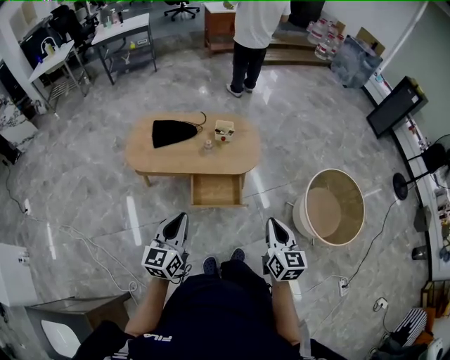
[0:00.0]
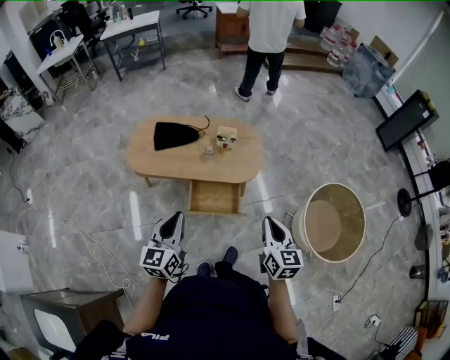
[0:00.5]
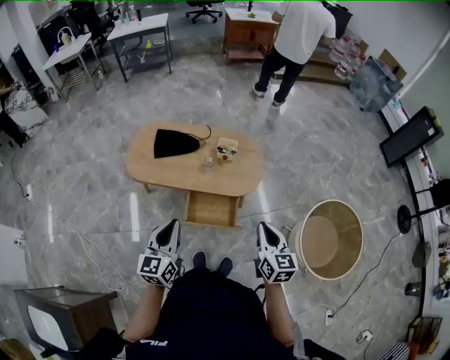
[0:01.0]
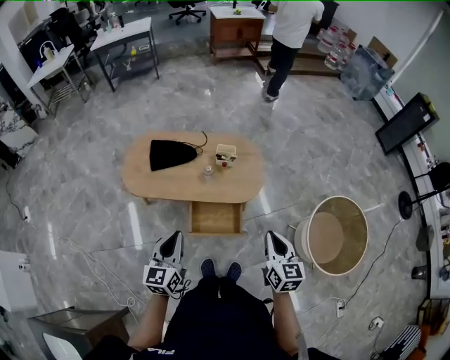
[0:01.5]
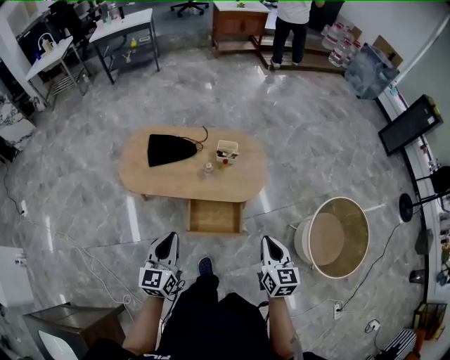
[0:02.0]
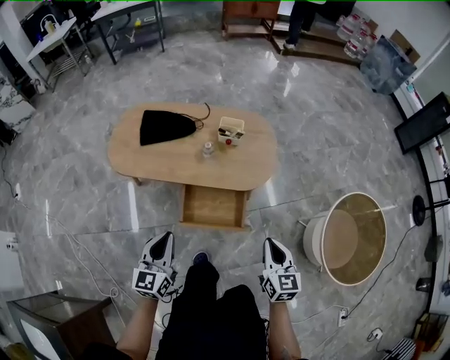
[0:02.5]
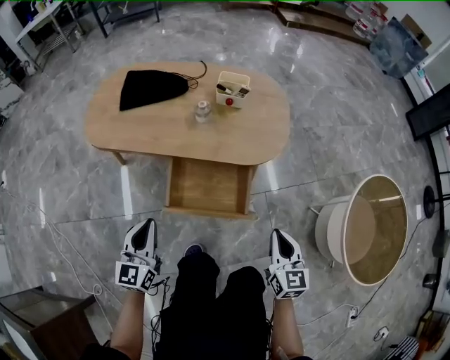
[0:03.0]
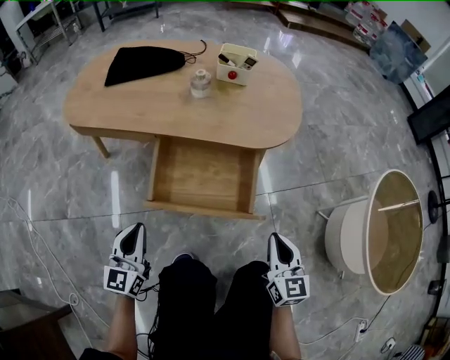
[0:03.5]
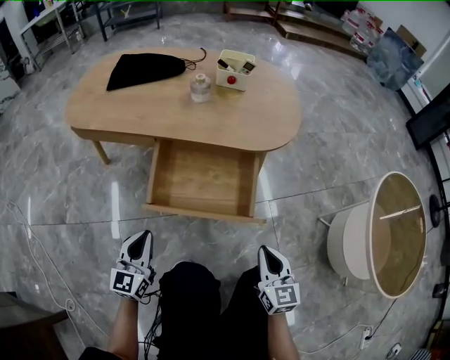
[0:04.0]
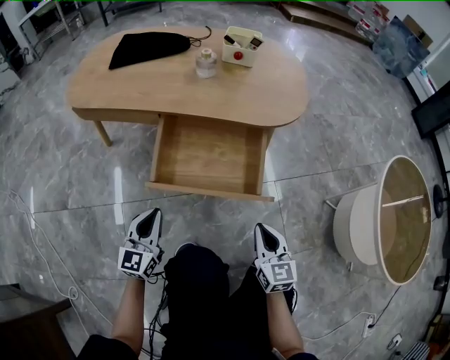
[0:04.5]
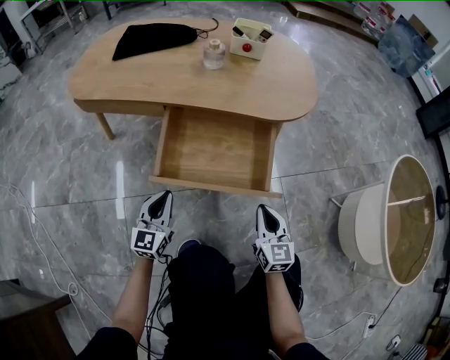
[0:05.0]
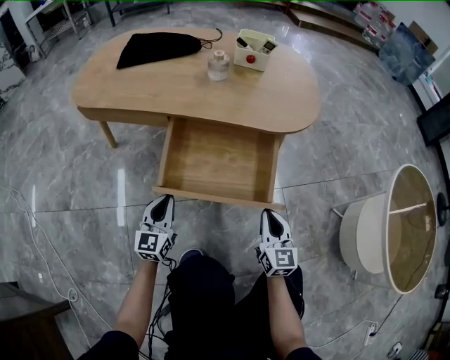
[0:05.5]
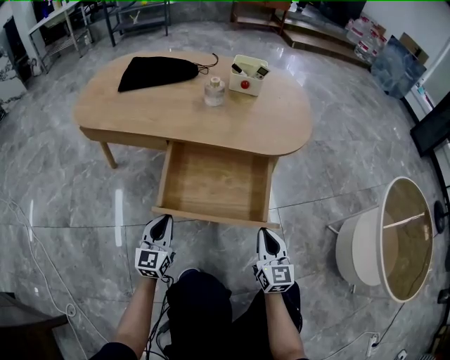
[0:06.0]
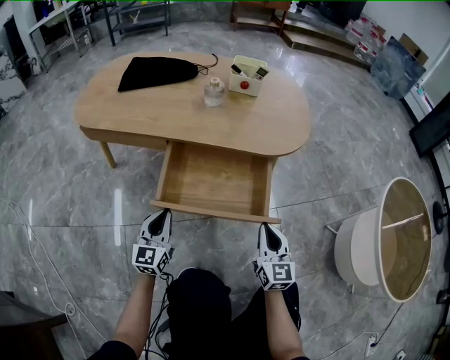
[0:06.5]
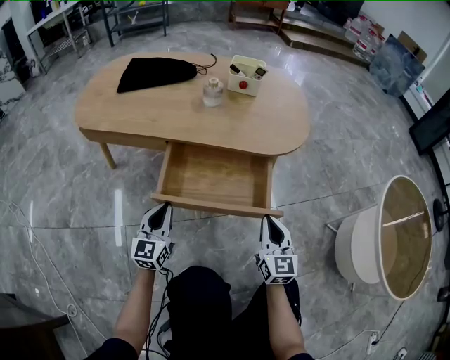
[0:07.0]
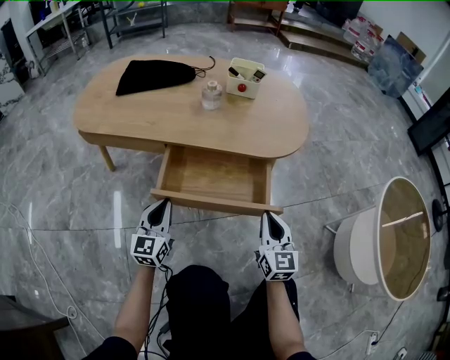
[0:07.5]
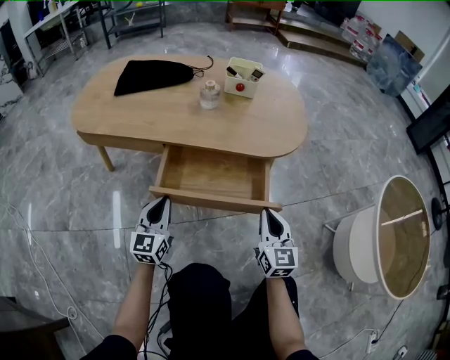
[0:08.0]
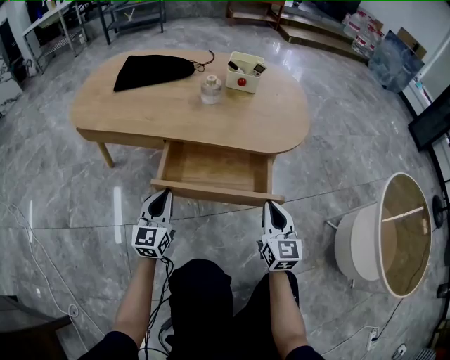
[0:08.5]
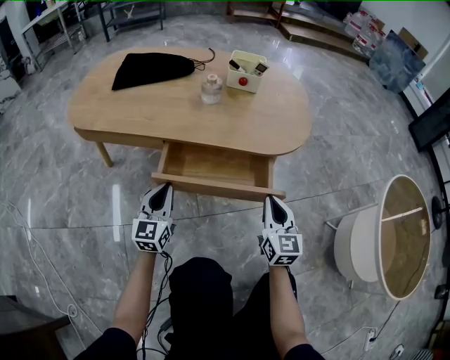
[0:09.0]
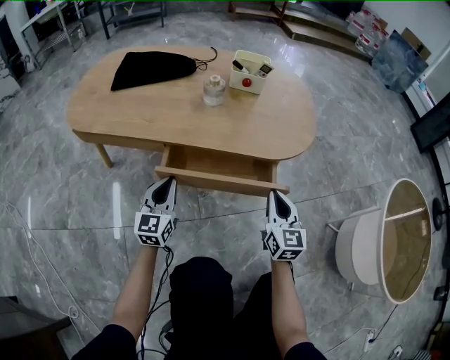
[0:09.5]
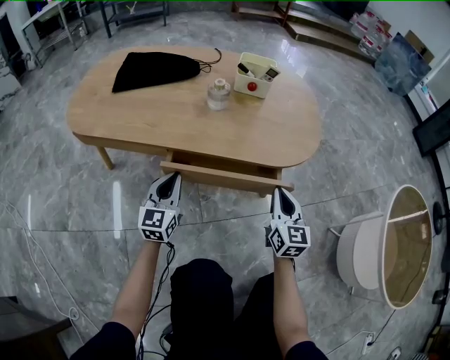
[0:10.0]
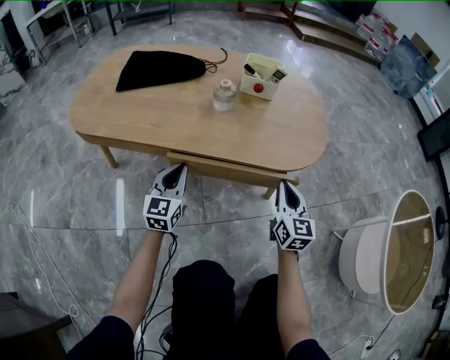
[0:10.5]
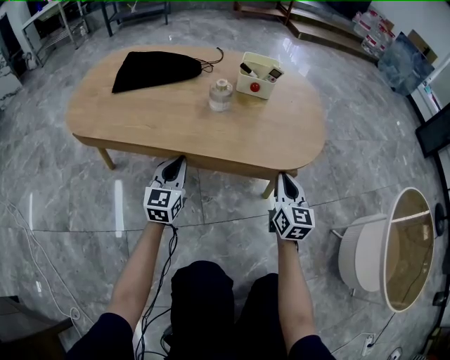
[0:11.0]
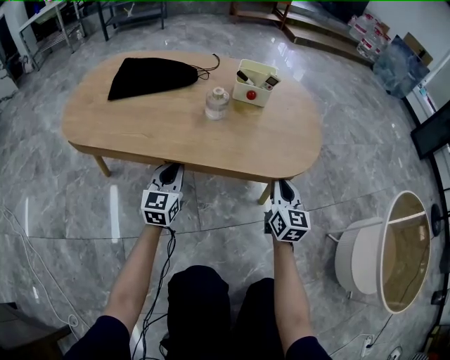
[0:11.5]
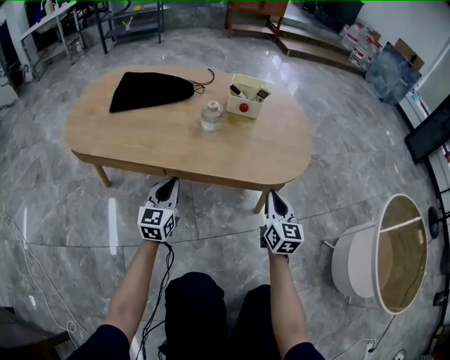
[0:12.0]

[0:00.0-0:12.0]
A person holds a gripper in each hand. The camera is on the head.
0:00.0 to 0:02.0: The grippers both shift forward and downward by approximately 20 cm.
0:02.0 to 0:04.0: Both grippers move downward, some 60 cm.
0:04.0 to 0:06.0: The left gripper travels downward and forward by approximately 10 cm, while the right gripper travels forward and downward by approximately 10 cm.
0:06.0 to 0:08.0: The two grippers go some 10 cm upward and forward.
0:08.0 to 0:10.0: The two grippers go roughly 10 cm forward.
0:10.0 to 0:12.0: The right gripper goes roughly 5 cm forward.

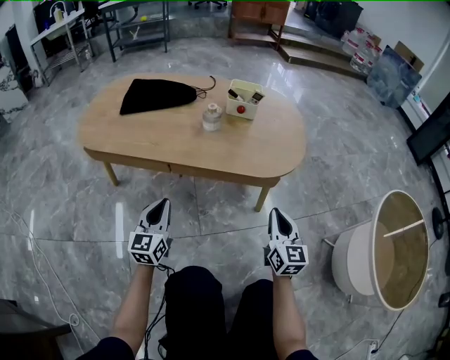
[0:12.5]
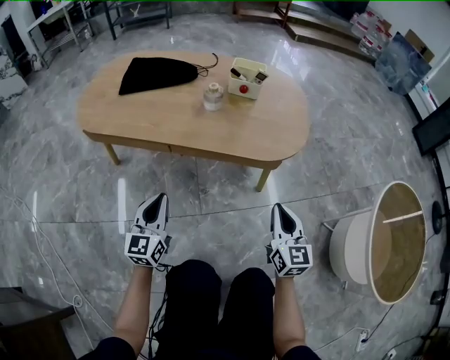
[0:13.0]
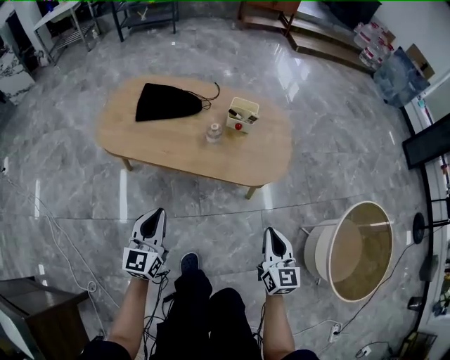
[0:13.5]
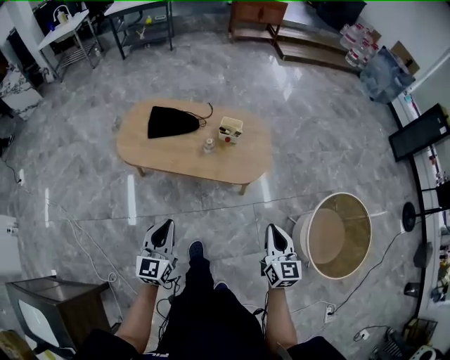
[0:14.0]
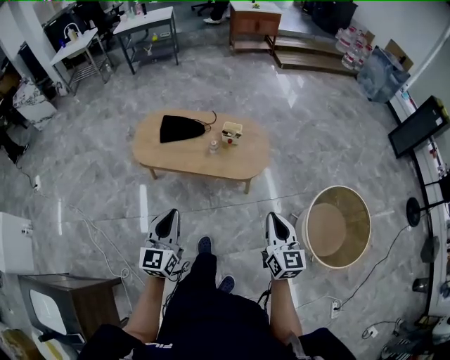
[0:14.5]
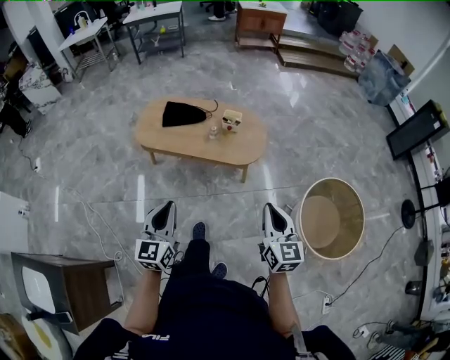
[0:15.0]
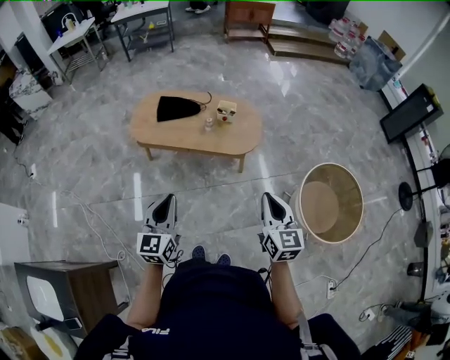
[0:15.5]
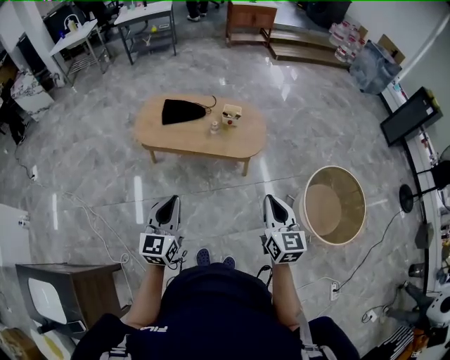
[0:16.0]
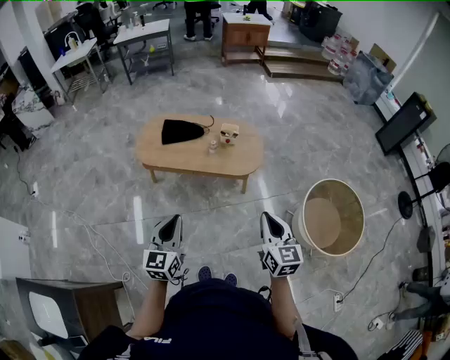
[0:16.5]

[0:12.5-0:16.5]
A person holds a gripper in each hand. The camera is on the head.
0:12.5 to 0:14.5: Both grippers move upward, roughly 60 cm.
0:14.5 to 0:16.5: The right gripper moves backward and to the left, some 10 cm; the left gripper shifts approximately 10 cm backward.

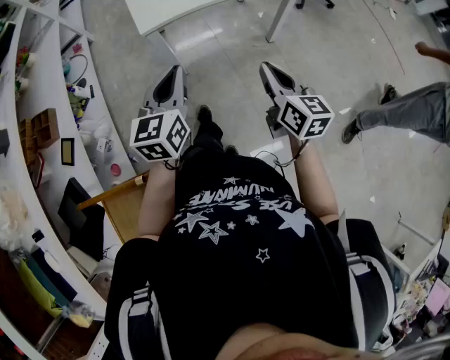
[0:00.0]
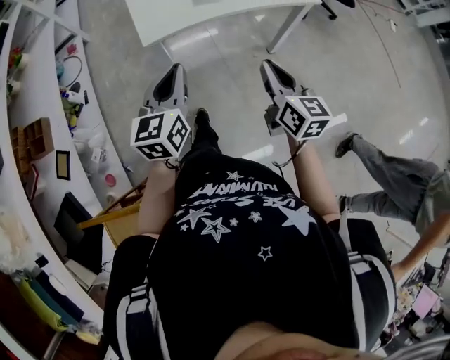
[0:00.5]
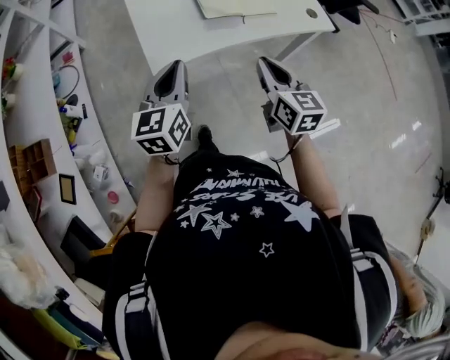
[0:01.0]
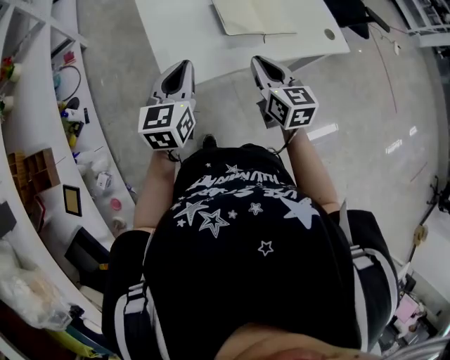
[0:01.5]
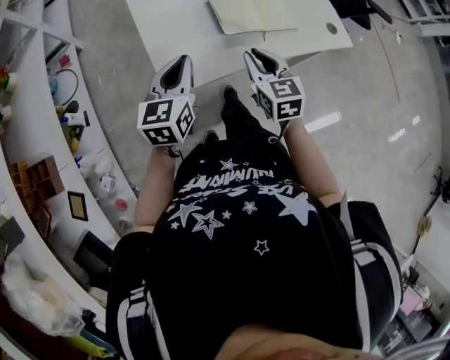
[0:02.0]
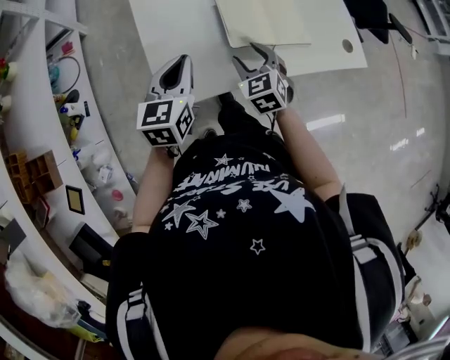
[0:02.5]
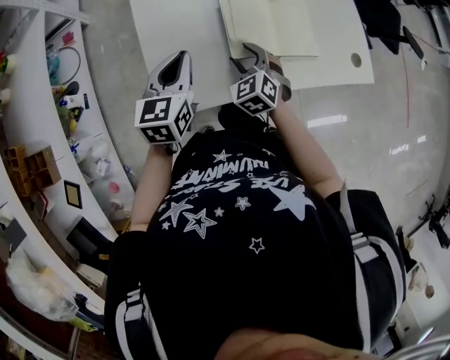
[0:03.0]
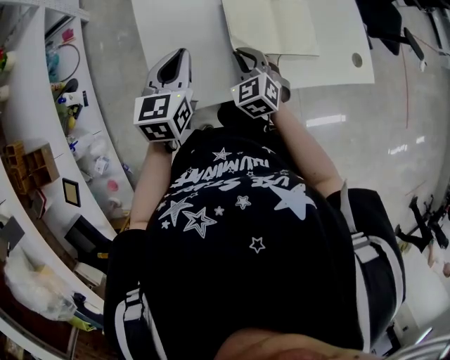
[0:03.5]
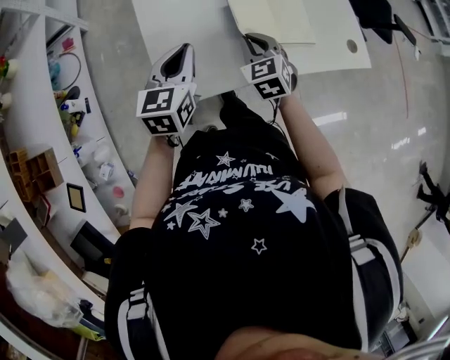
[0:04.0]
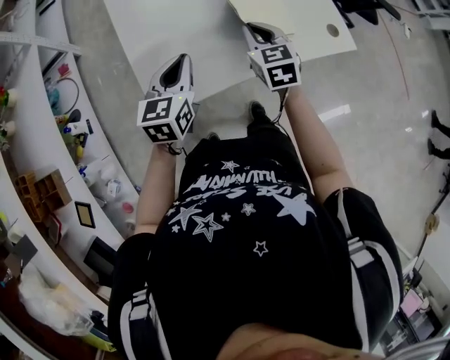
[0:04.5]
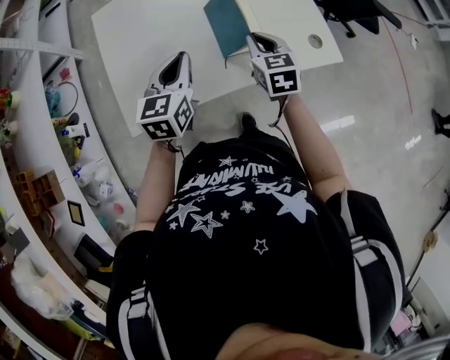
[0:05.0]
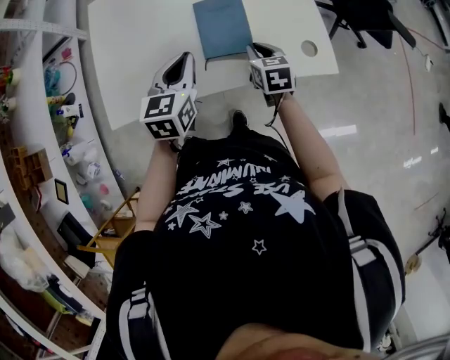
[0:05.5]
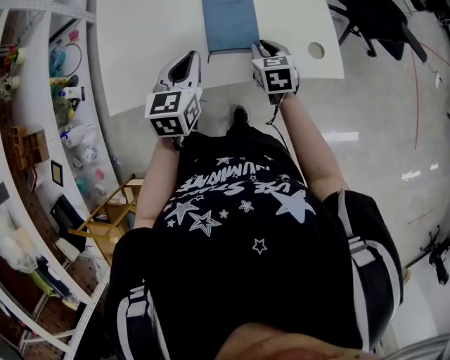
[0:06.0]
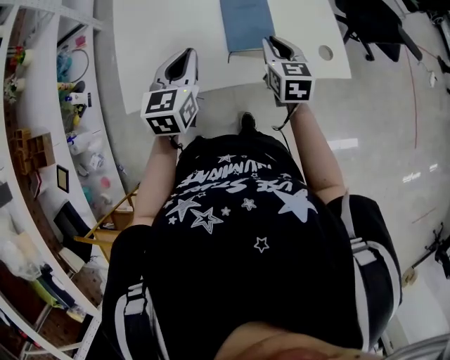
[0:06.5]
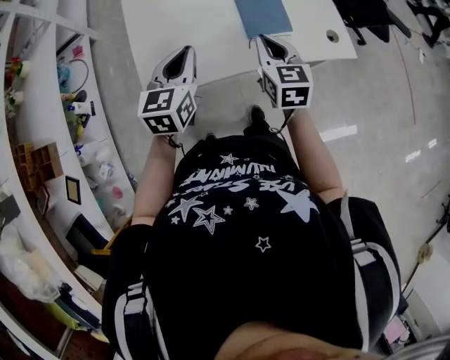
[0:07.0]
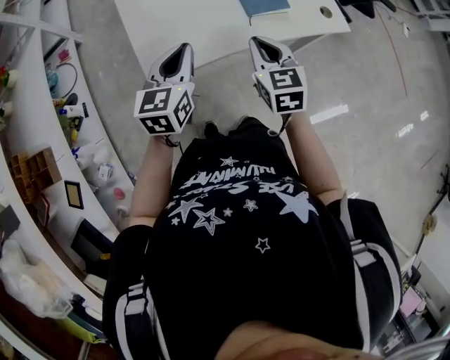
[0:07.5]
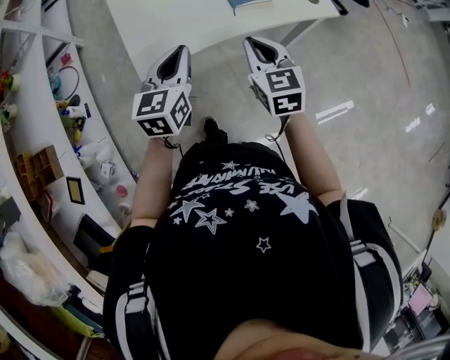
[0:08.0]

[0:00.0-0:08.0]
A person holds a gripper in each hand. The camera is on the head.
0:00.0 to 0:02.0: Both grippers travel together forward, approximately 40 cm. The right gripper turns by approximately 30 degrees.
0:02.0 to 0:04.0: The left gripper shifts roughly 10 cm forward; the right gripper is displaced forward and downward by about 15 cm, rotates roughly 20 degrees, and opens, then closes once more.
0:04.0 to 0:06.0: Both grippers move to the right, approximately 25 cm. The right gripper rotates some 20 degrees.
0:06.0 to 0:08.0: The left gripper goes roughly 25 cm backward and to the left. The right gripper is displaced backward, to the left and upward by about 30 cm, and swivels approximately 20 degrees.

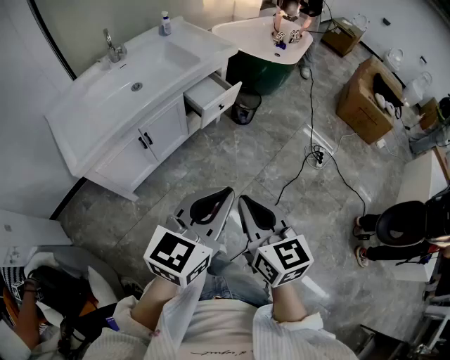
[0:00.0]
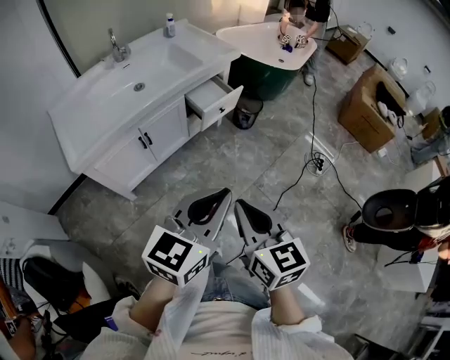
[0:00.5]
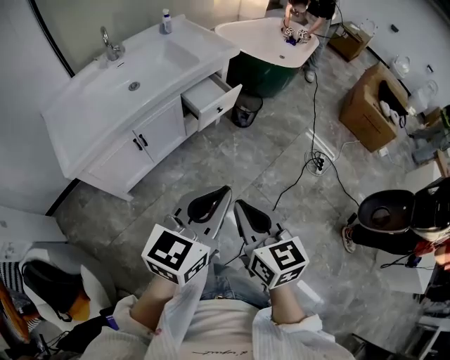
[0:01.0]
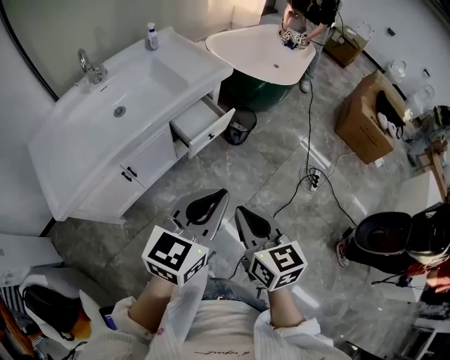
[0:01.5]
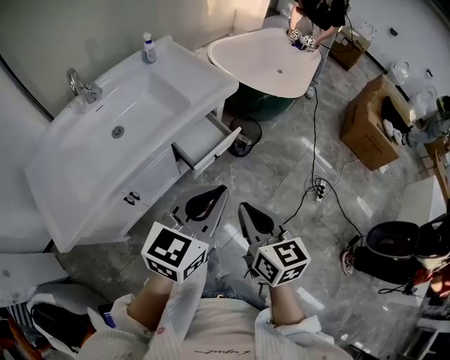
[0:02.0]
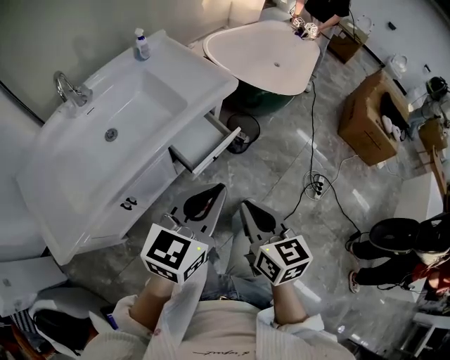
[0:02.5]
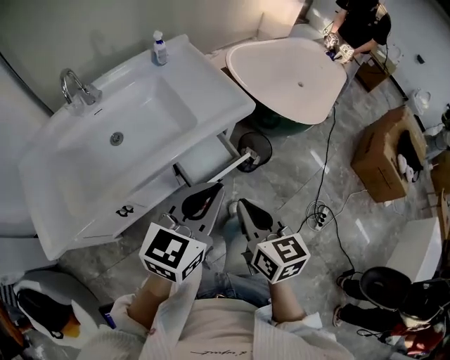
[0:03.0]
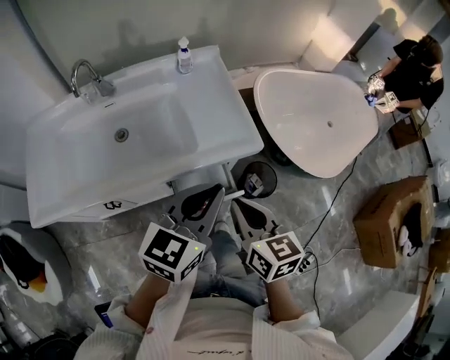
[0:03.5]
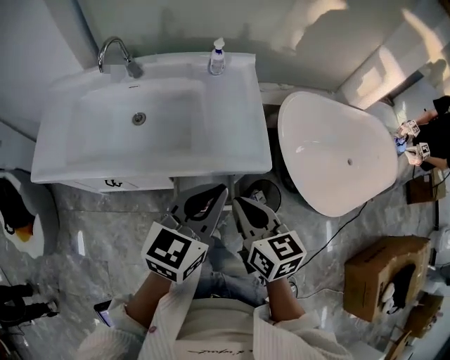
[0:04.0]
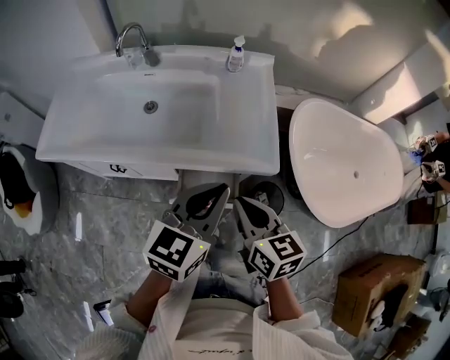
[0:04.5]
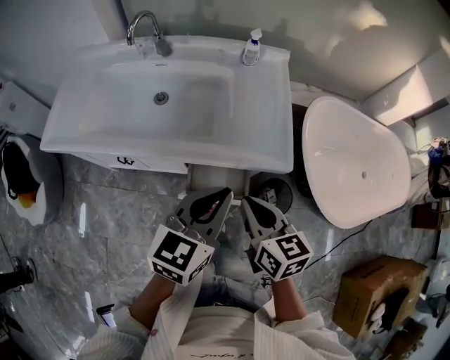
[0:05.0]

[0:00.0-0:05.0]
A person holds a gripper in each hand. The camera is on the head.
0:00.0 to 0:02.5: The grippers both shift forward by about 35 cm.
0:02.5 to 0:05.0: The right gripper moves approximately 30 cm, and swivels approximately 50 degrees. Meanwhile the left gripper ends up approximately 25 cm from where it was, and turns by approximately 50 degrees.
